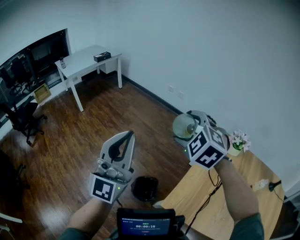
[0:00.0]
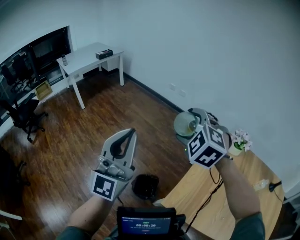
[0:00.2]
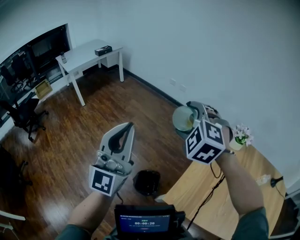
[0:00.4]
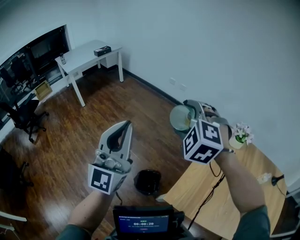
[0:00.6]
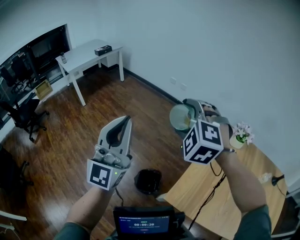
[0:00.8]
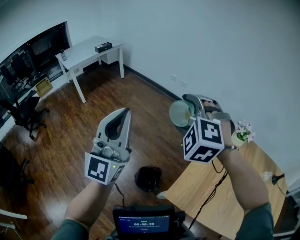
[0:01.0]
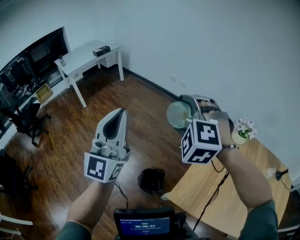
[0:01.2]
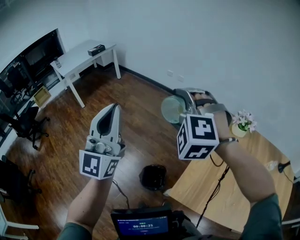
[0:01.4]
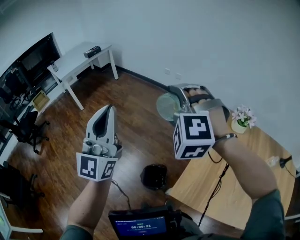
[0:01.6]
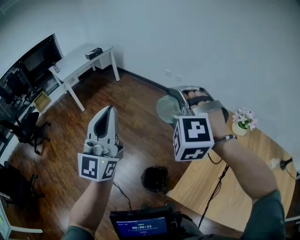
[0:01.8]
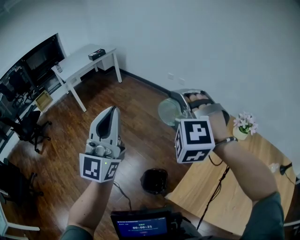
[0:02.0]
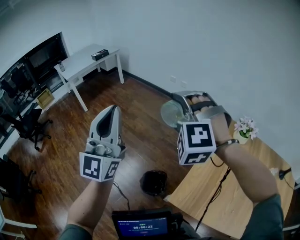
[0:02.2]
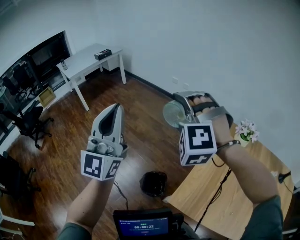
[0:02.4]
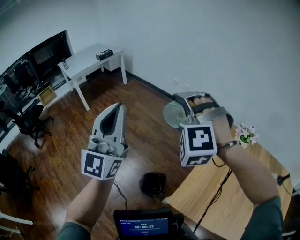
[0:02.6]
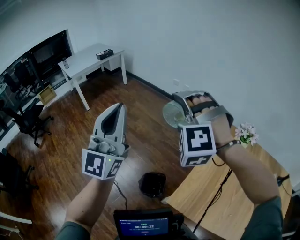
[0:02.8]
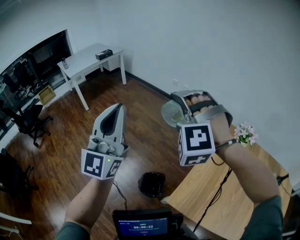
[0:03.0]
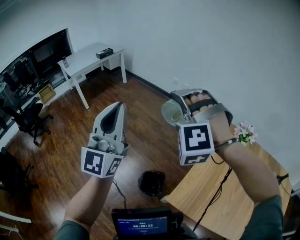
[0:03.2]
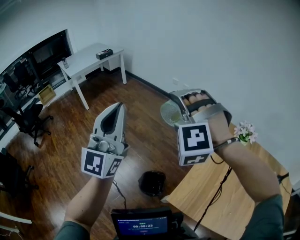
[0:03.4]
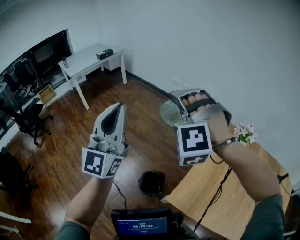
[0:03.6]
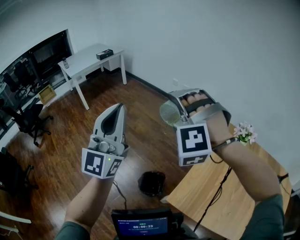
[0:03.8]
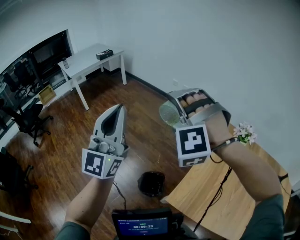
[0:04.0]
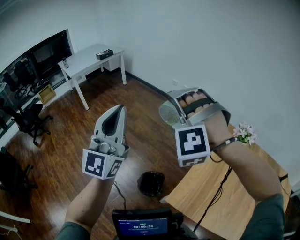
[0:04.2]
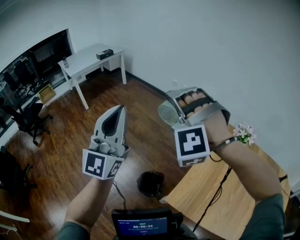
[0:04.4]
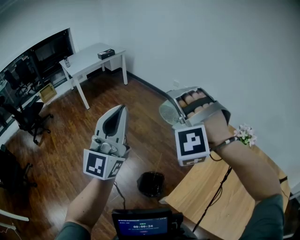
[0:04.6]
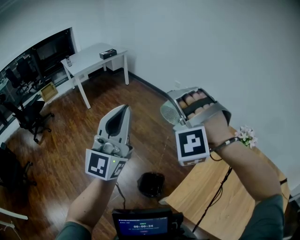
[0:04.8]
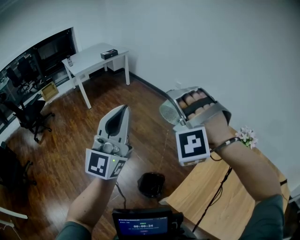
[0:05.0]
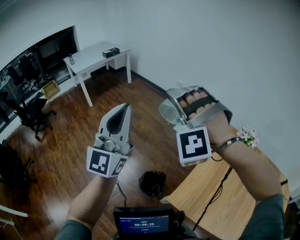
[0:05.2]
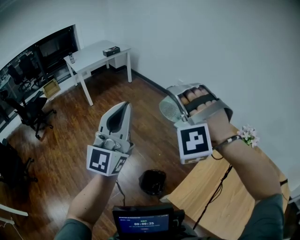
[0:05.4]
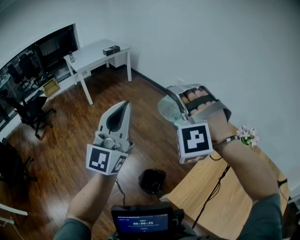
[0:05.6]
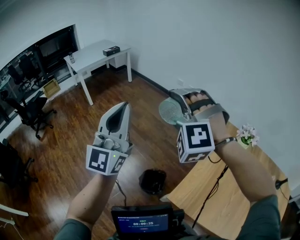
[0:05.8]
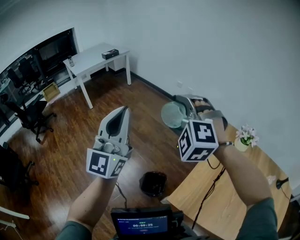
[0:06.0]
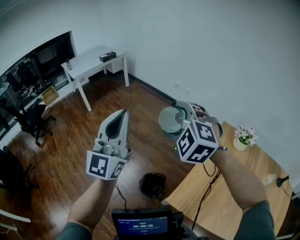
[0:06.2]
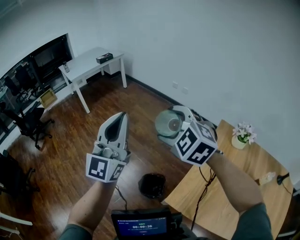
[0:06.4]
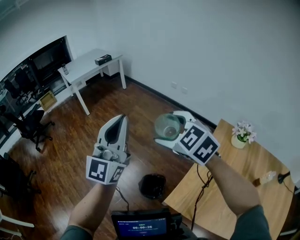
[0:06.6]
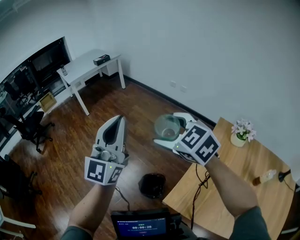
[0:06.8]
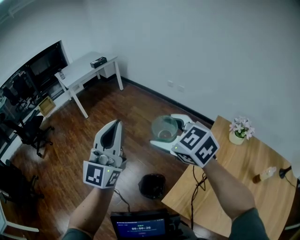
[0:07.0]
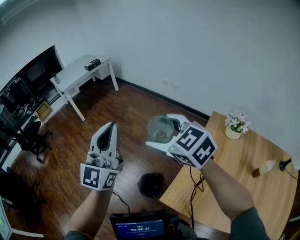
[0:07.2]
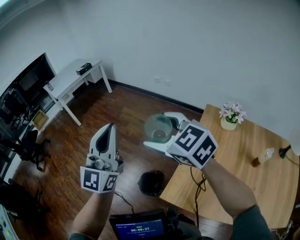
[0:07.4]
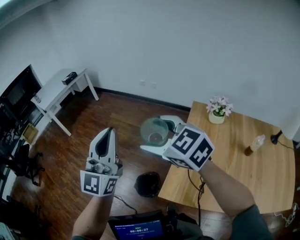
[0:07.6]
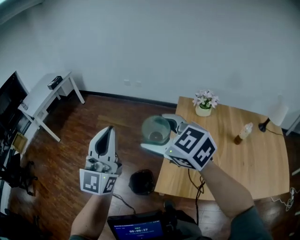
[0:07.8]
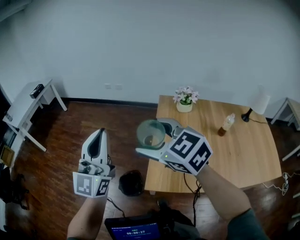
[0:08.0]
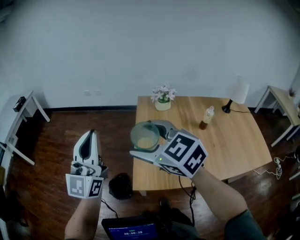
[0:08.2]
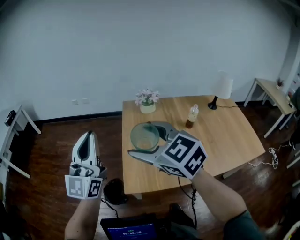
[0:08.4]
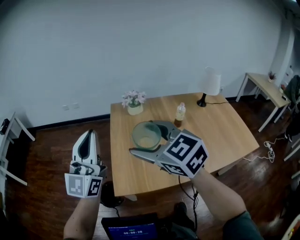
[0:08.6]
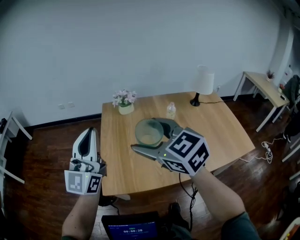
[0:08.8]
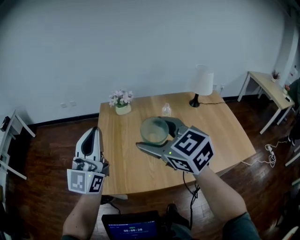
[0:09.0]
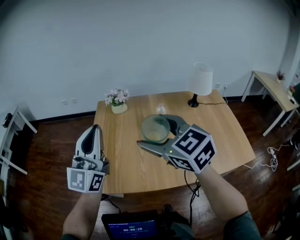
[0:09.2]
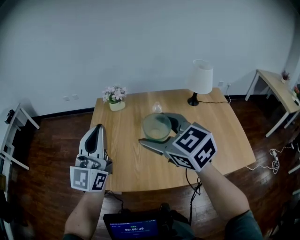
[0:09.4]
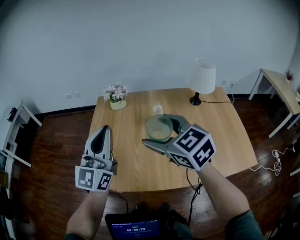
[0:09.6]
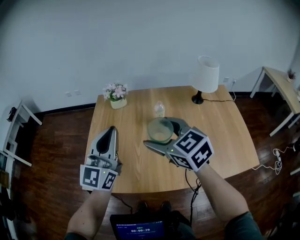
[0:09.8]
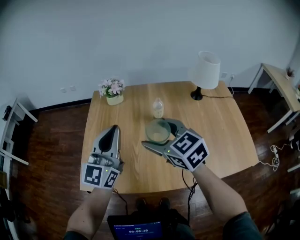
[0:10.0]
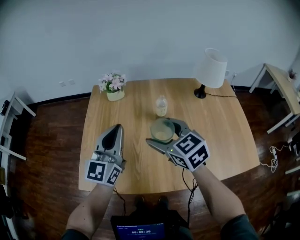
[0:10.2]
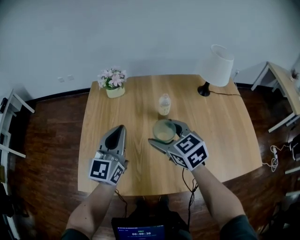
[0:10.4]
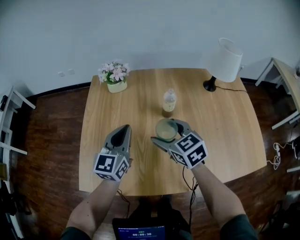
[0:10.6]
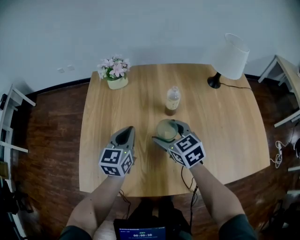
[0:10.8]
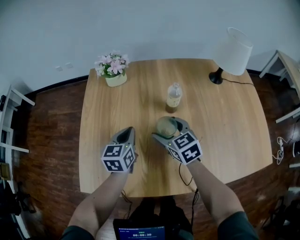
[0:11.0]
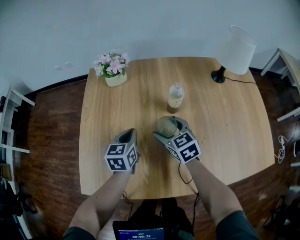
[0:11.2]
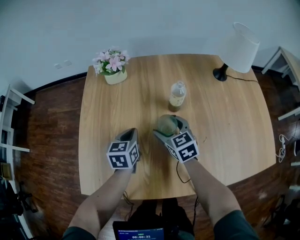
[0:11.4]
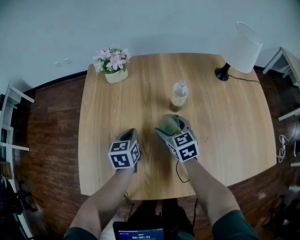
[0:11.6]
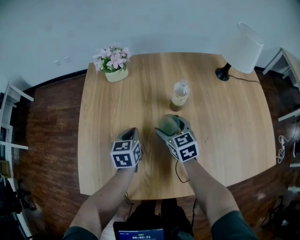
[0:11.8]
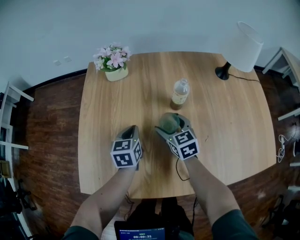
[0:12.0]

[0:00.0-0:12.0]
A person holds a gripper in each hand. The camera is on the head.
0:00.0 to 0:01.6: The right gripper changes its angle by some 30 degrees. The left gripper heads forward, covering roughly 5 cm.
0:01.6 to 0:03.0: There are only small adjustments of the grippers.
0:03.0 to 0:04.4: The grippers move only a little.
0:04.4 to 0:06.0: The right gripper rotates roughly 30 degrees.
0:06.0 to 0:07.6: The right gripper travels backward and to the right by some 10 cm, and rotates around the line of its fingers by about 60 degrees, clockwise from behind. The left gripper travels to the right by some 10 cm.
0:07.6 to 0:09.0: The right gripper shifts by about 40 cm, and changes its angle by about 40 degrees, while the left gripper shifts by roughly 35 cm, and swivels approximately 30 degrees.
0:09.0 to 0:10.4: The left gripper heads to the right, downward and forward, covering roughly 25 cm, and swivels about 20 degrees. The right gripper goes about 25 cm downward, to the right and forward.
0:10.4 to 0:12.0: The right gripper goes about 20 cm downward and forward. Meanwhile the left gripper travels downward by some 25 cm, and points its fingers approximately 30 degrees further downward.

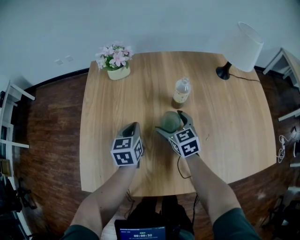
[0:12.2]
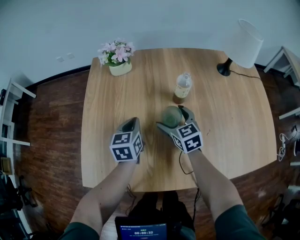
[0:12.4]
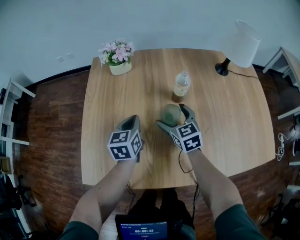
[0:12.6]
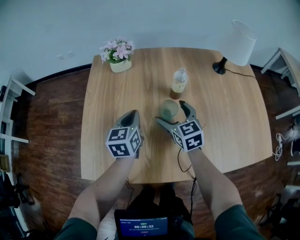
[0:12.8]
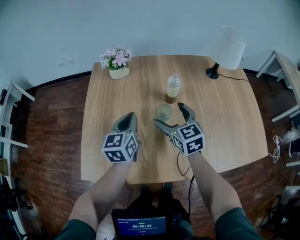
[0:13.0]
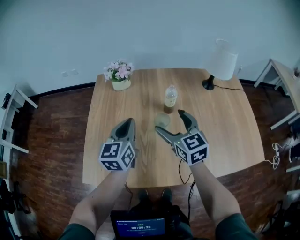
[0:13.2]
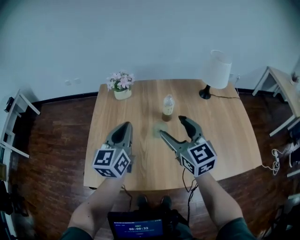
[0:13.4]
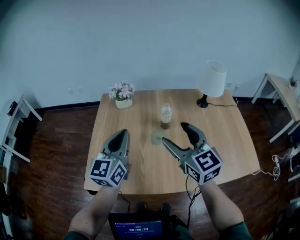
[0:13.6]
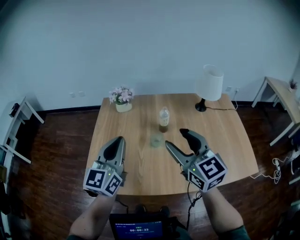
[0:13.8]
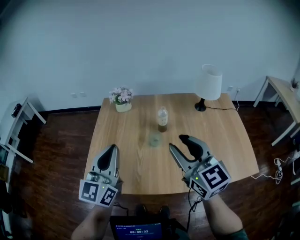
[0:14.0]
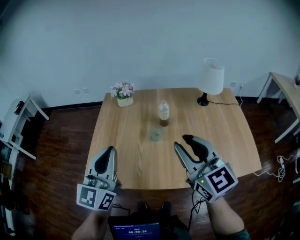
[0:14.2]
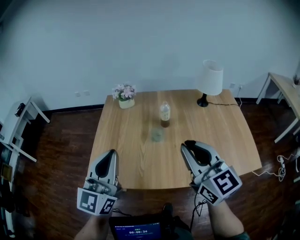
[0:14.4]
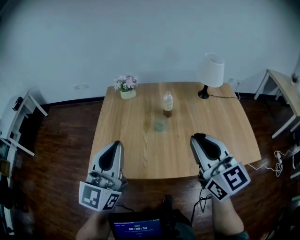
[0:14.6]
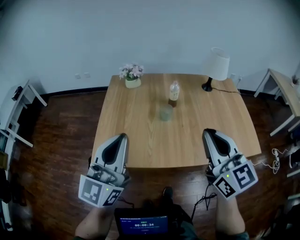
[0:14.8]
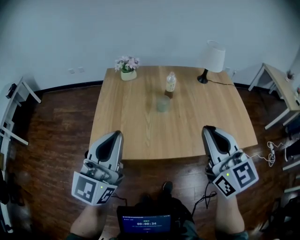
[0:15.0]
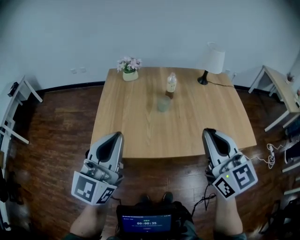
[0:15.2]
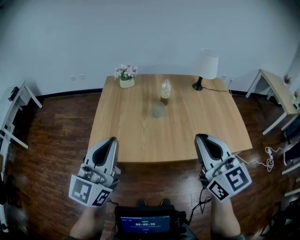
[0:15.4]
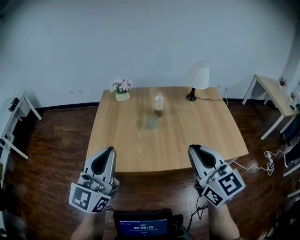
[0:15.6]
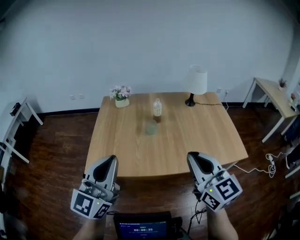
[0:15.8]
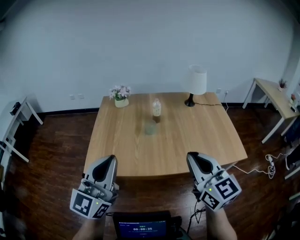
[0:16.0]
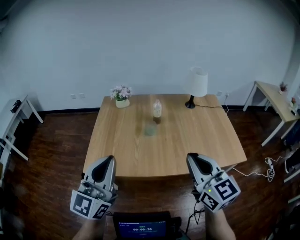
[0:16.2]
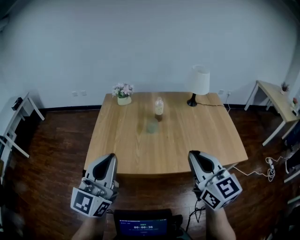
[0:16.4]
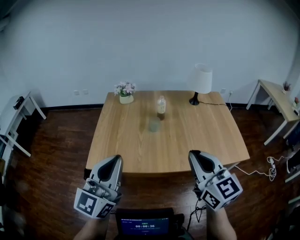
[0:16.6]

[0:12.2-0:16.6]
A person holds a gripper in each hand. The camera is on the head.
0:12.2 to 0:13.6: Both grippers travel together upward and backward, roughly 35 cm. The right gripper swivels some 30 degrees. Meanwhile the left gripper angles its fingers upward, by some 30 degrees.
0:13.6 to 0:15.2: Both grippers travel together backward, roughly 25 cm. The right gripper closes.
0:15.2 to 0:16.6: The left gripper is displaced to the right by approximately 5 cm, while the right gripper moves some 5 cm.

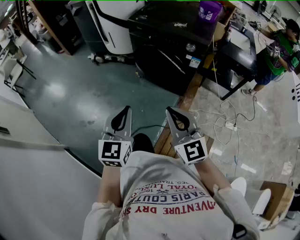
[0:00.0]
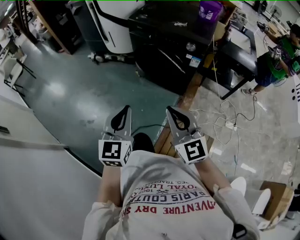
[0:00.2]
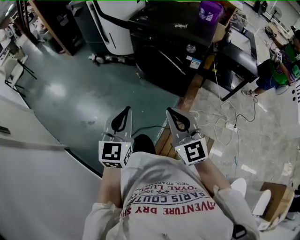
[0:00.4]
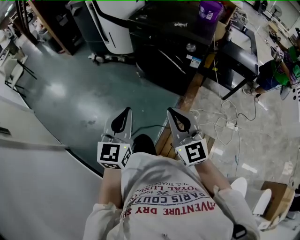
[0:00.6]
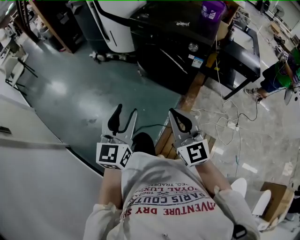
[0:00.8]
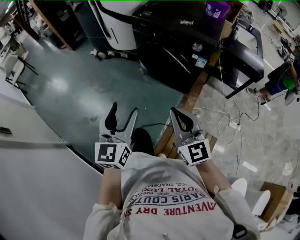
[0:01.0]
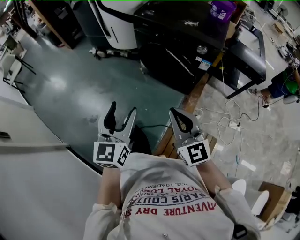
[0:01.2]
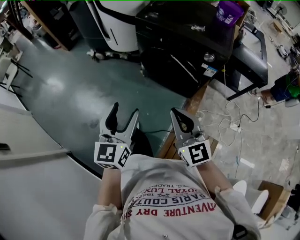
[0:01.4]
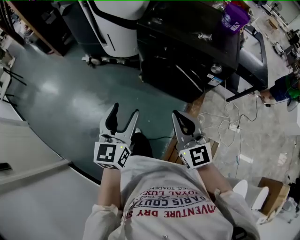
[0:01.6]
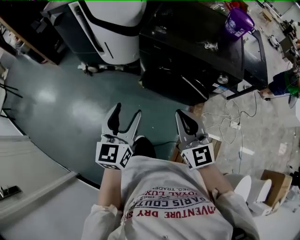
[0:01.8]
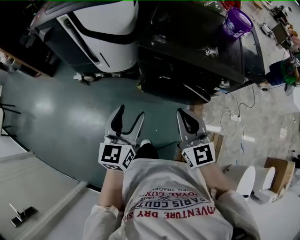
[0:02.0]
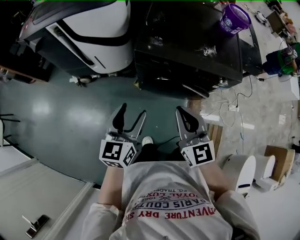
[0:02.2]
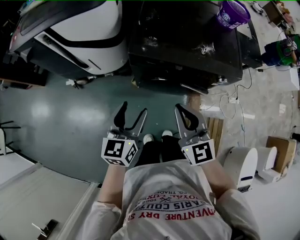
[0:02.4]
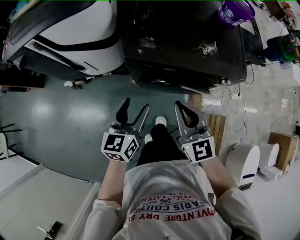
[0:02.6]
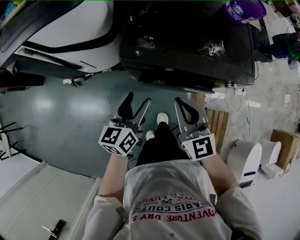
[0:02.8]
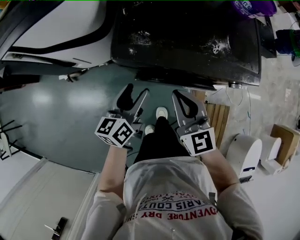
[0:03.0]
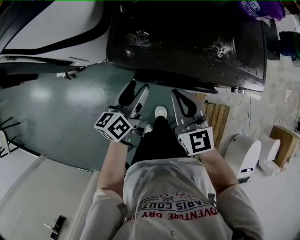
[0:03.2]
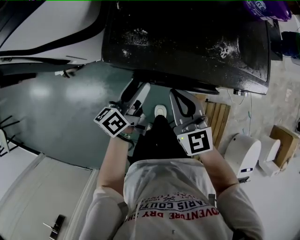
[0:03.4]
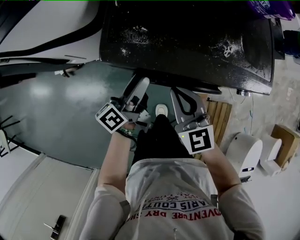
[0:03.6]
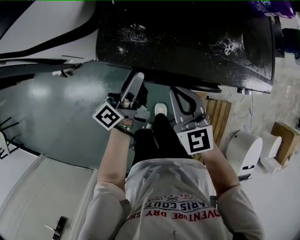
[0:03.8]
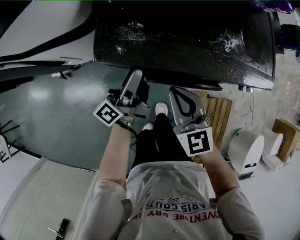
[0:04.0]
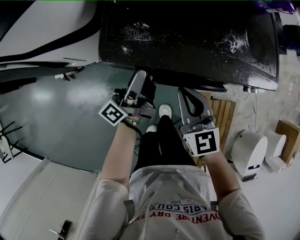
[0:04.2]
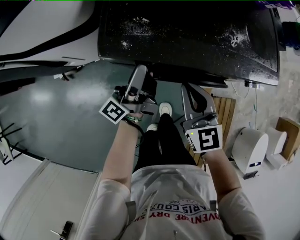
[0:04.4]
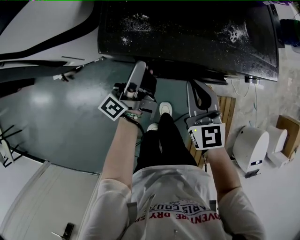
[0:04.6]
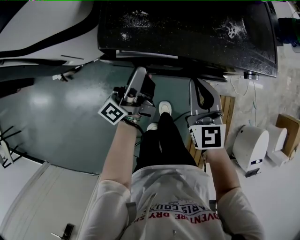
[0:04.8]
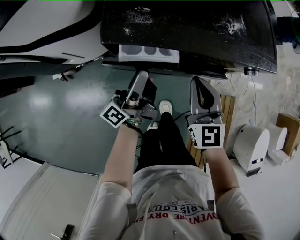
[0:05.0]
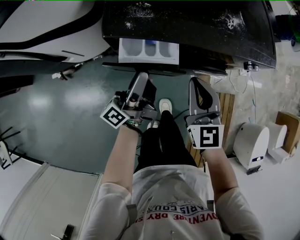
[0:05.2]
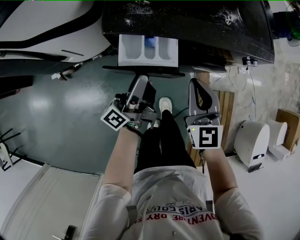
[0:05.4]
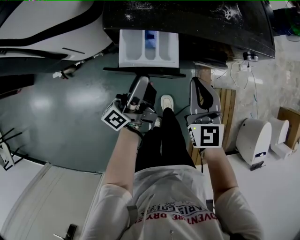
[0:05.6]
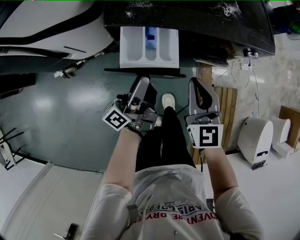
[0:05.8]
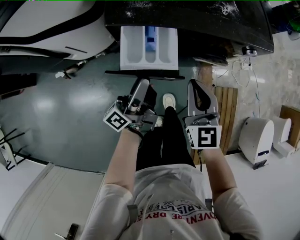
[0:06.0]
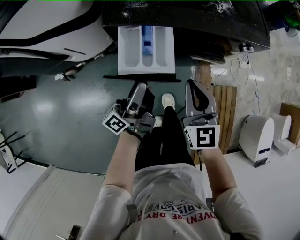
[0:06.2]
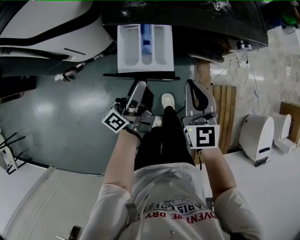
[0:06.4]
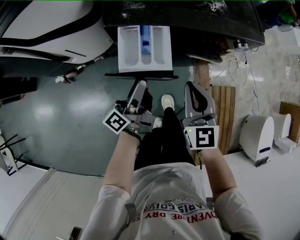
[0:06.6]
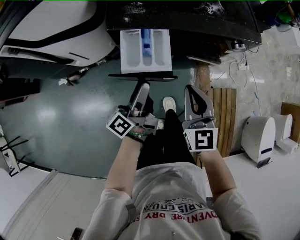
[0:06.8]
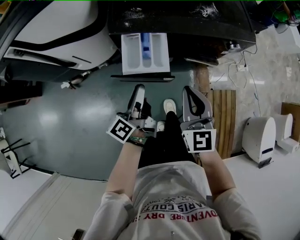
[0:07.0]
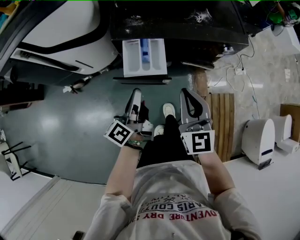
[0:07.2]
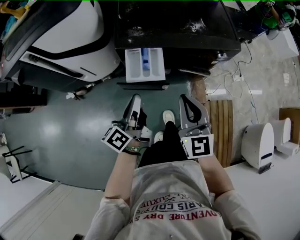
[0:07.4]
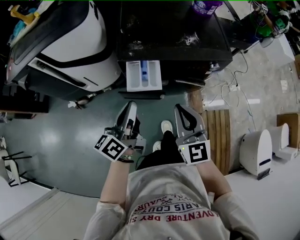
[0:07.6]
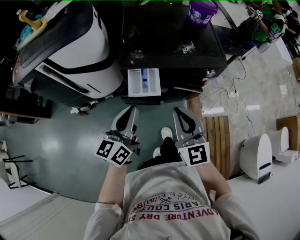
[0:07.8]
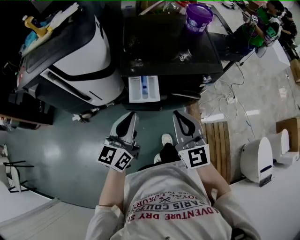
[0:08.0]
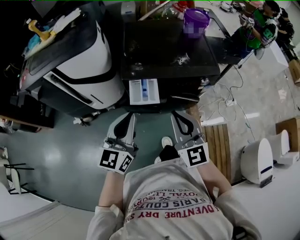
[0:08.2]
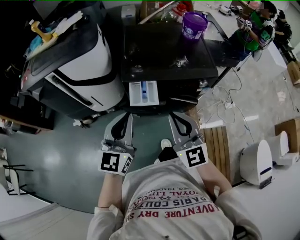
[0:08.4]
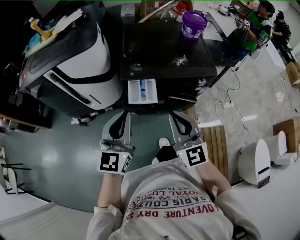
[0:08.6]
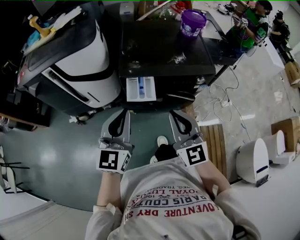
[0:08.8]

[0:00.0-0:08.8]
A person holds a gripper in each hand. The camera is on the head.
0:00.0 to 0:01.4: Both grippers move forward, about 15 cm. The left gripper opens its fingers.
0:01.4 to 0:03.0: The pair of grippers is taken roughly 40 cm. The left gripper changes its angle by about 40 degrees. Meanwhile the right gripper changes its angle by some 30 degrees.
0:03.0 to 0:04.4: The right gripper travels downward by some 10 cm. The left gripper travels forward by approximately 10 cm, and tips its fingers upward by some 40 degrees.
0:04.4 to 0:05.8: Both grippers move backward, approximately 10 cm.
0:05.8 to 0:07.4: Both grippers move upward and backward, some 10 cm. The left gripper swivels approximately 30 degrees, and closes.
0:07.4 to 0:08.8: The right gripper heads upward and backward, covering approximately 15 cm. Meanwhile the left gripper travels upward by some 20 cm, and rotates around the line of its fingers by roughly 60 degrees, clockwise from behind.
